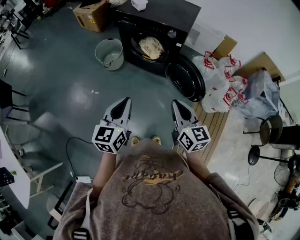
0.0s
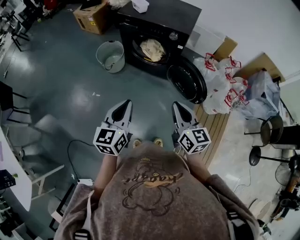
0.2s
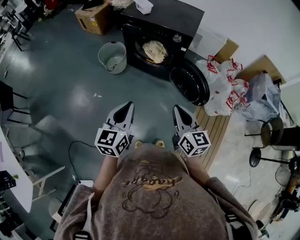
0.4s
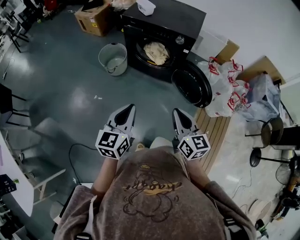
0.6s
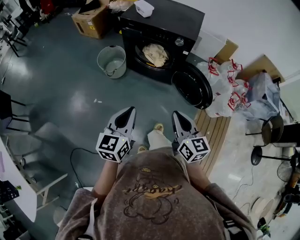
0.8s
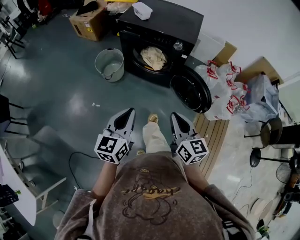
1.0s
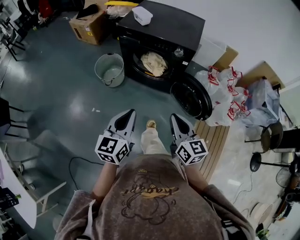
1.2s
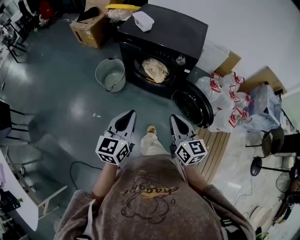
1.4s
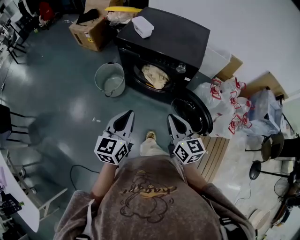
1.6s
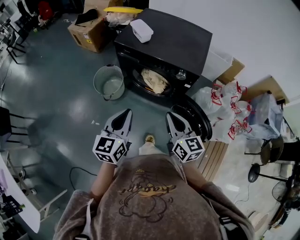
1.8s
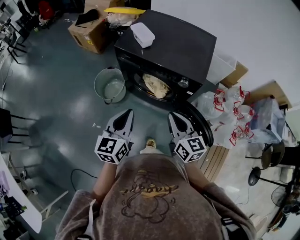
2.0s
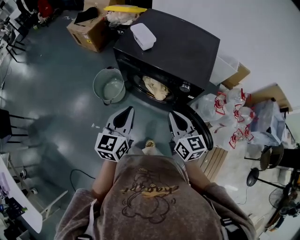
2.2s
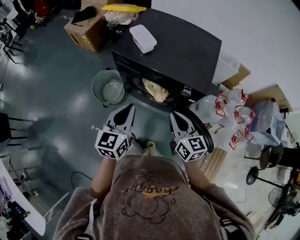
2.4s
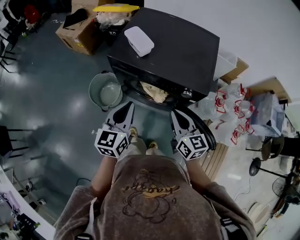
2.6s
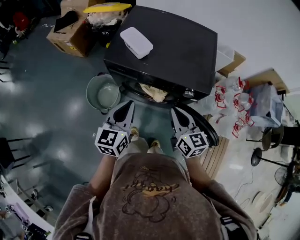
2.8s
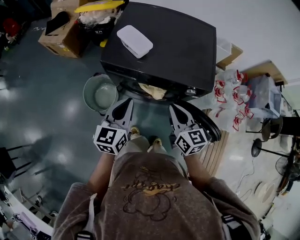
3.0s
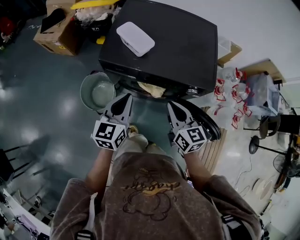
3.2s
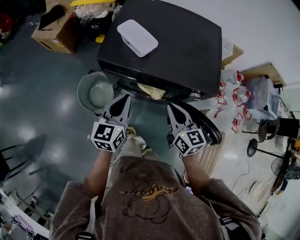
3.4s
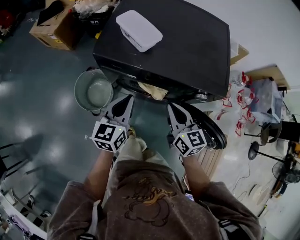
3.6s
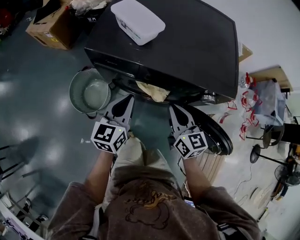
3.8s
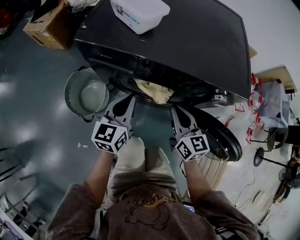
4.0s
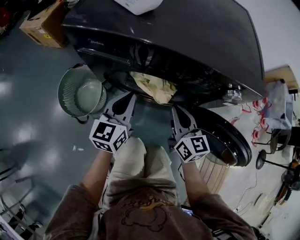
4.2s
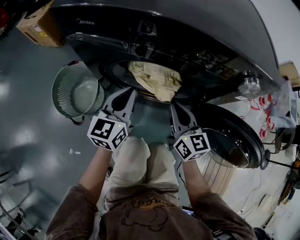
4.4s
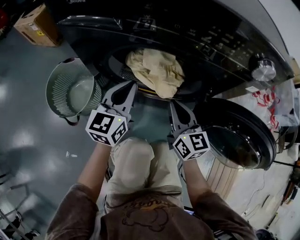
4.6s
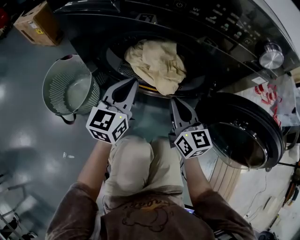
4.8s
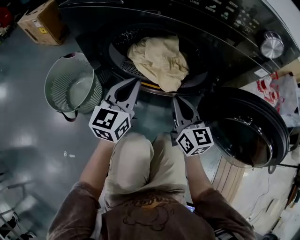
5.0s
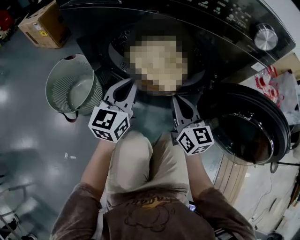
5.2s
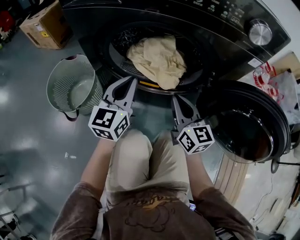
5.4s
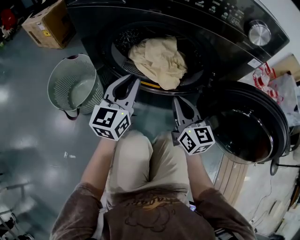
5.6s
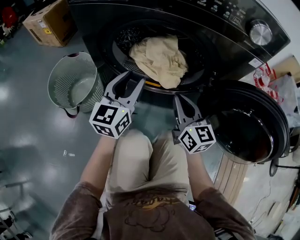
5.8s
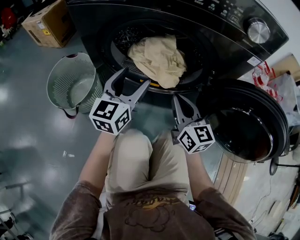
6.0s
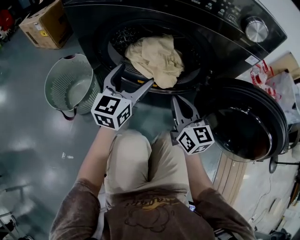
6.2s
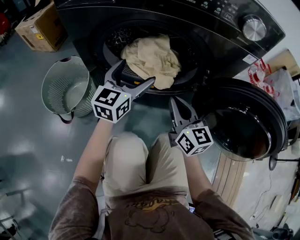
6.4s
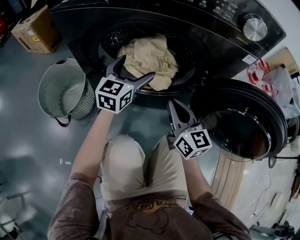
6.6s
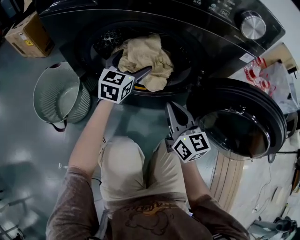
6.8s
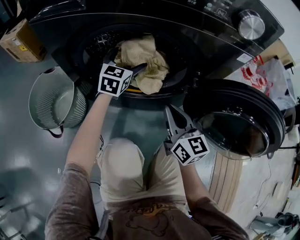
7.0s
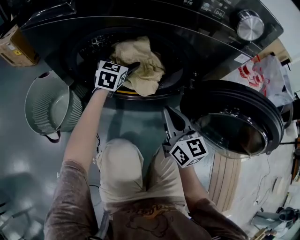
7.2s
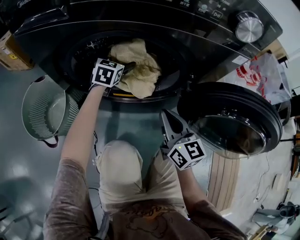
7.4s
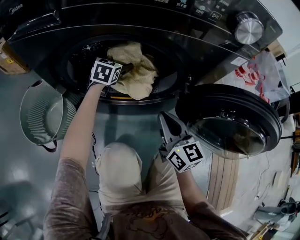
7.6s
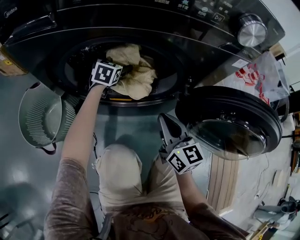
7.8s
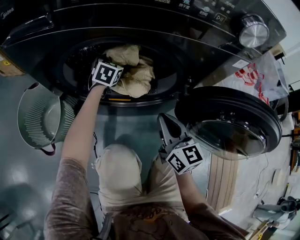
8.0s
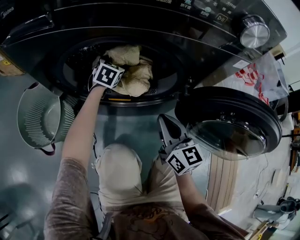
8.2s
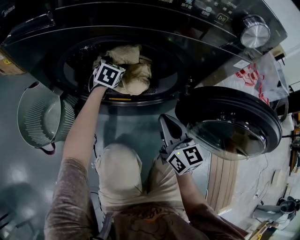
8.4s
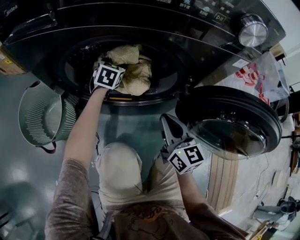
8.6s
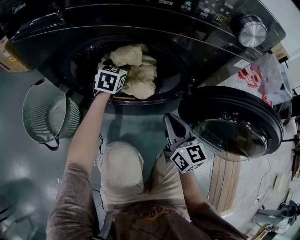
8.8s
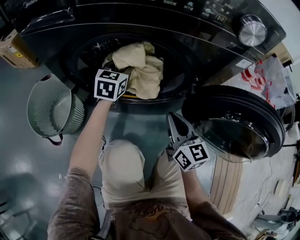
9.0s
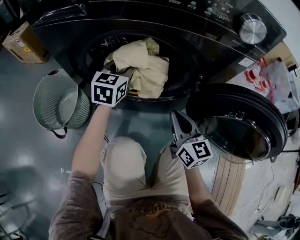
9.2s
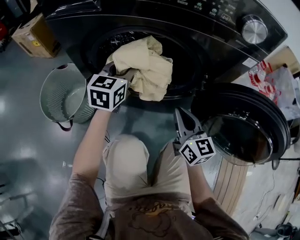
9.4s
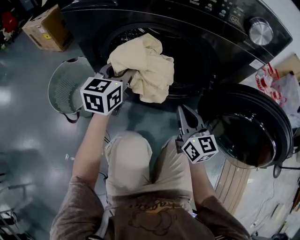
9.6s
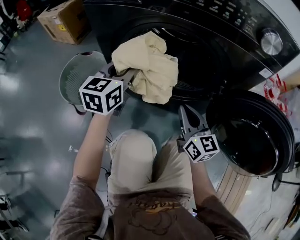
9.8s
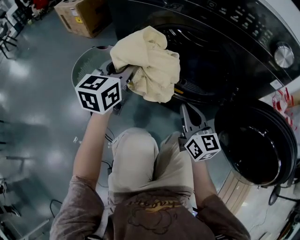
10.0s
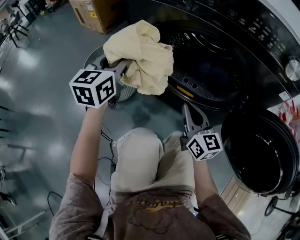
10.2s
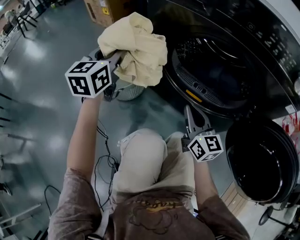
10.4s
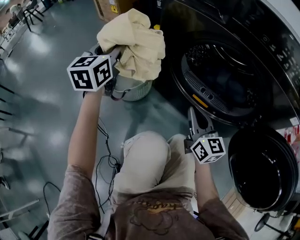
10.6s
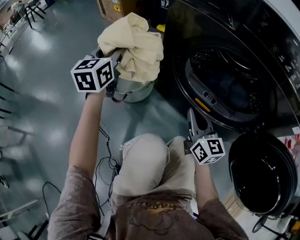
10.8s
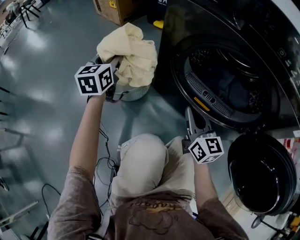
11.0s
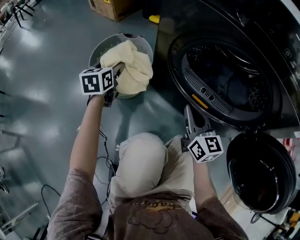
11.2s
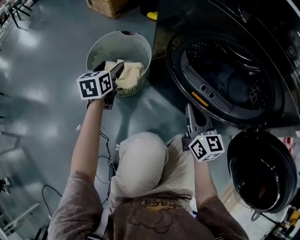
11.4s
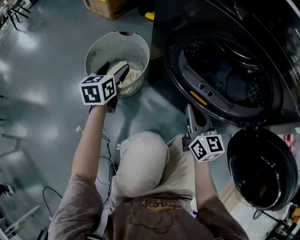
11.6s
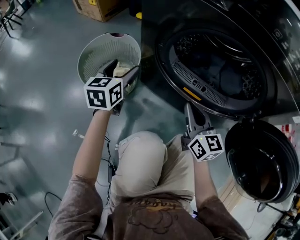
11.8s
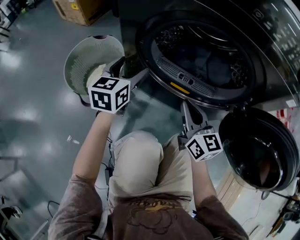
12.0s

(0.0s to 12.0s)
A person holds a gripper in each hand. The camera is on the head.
0.0s - 1.6s: Both grippers move forward, roughly 20 cm.
1.6s - 3.0s: The grippers both shift forward by roughly 30 cm.
3.0s - 4.4s: The grippers both shift downward by roughly 35 cm.
4.4s - 6.0s: The grippers both shift downward by approximately 10 cm. The left gripper opens.
6.0s - 7.6s: The left gripper is displaced forward and downward by roughly 30 cm, changes its angle by some 30 degrees, and opens up.
7.6s - 9.0s: The left gripper shifts approximately 10 cm backward and upward, and closes its fingers.
9.0s - 10.4s: The left gripper changes place by approximately 40 cm, and rotates some 30 degrees, while the right gripper changes place by roughly 15 cm, and changes its angle by about 30 degrees.
10.4s - 12.0s: The left gripper travels downward and to the right by about 20 cm, and opens up.

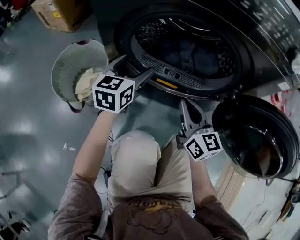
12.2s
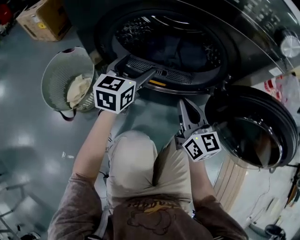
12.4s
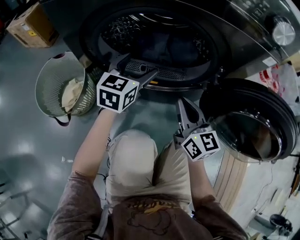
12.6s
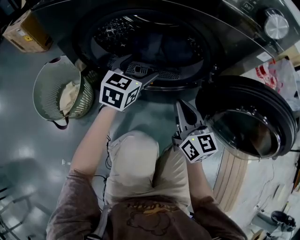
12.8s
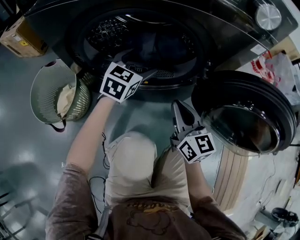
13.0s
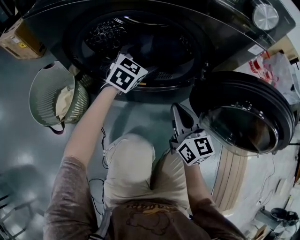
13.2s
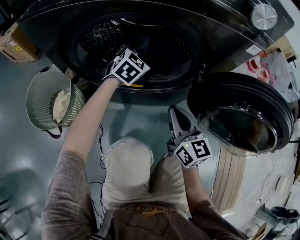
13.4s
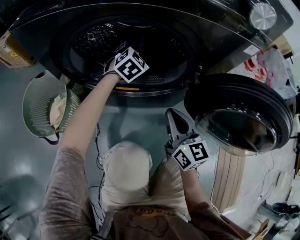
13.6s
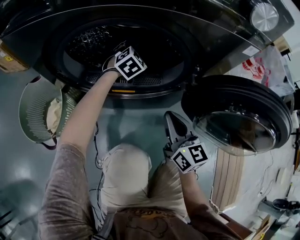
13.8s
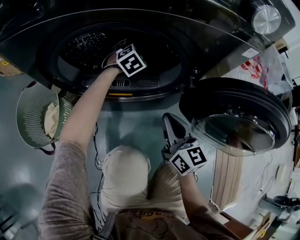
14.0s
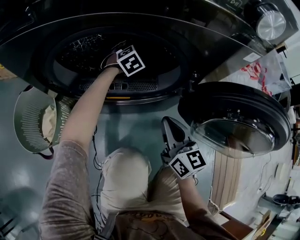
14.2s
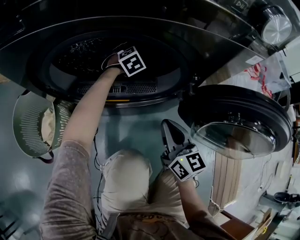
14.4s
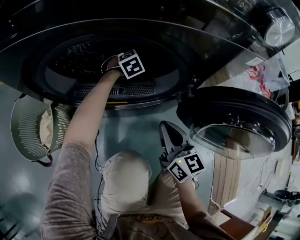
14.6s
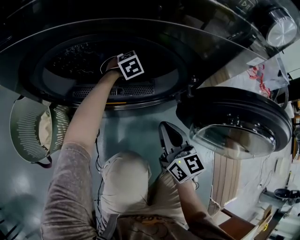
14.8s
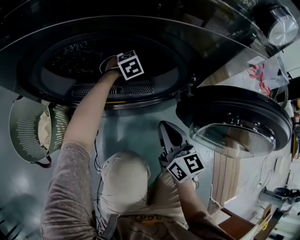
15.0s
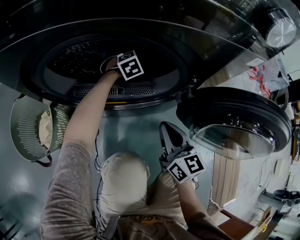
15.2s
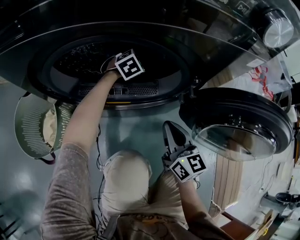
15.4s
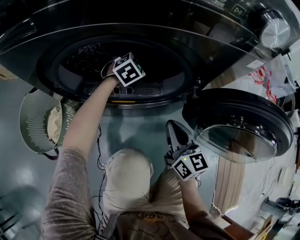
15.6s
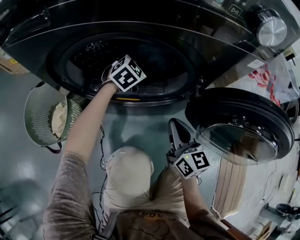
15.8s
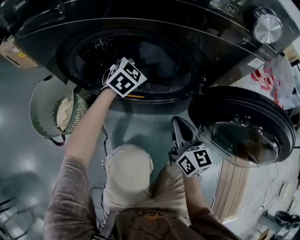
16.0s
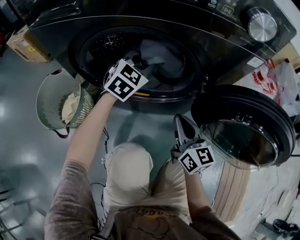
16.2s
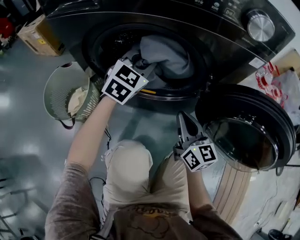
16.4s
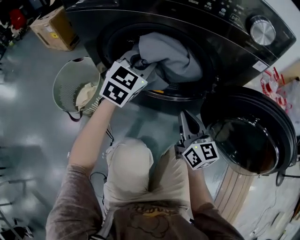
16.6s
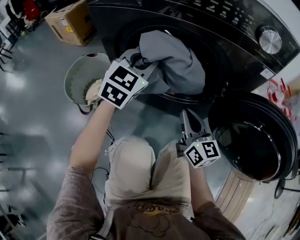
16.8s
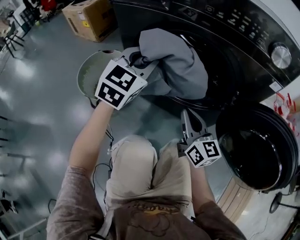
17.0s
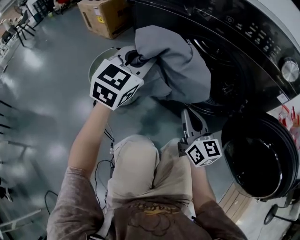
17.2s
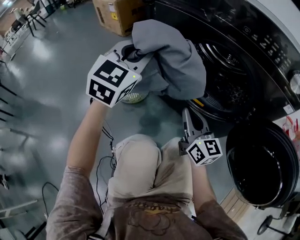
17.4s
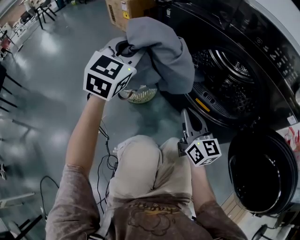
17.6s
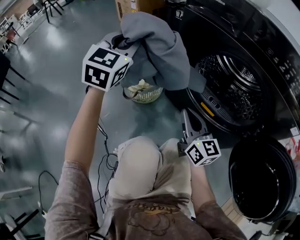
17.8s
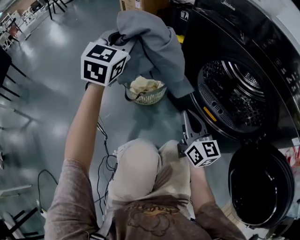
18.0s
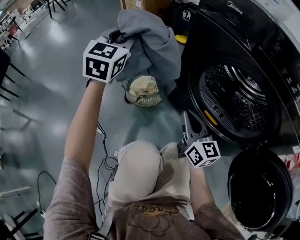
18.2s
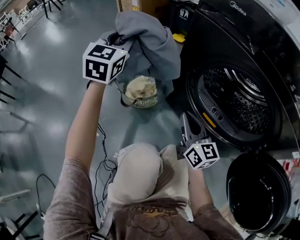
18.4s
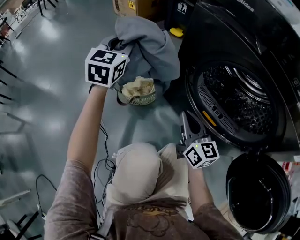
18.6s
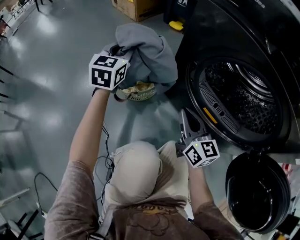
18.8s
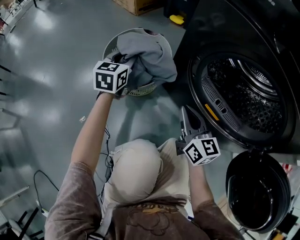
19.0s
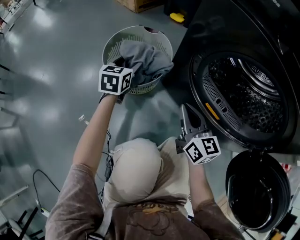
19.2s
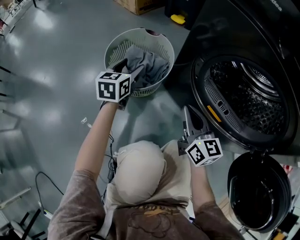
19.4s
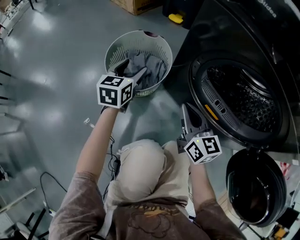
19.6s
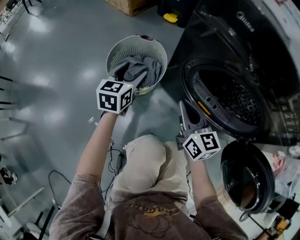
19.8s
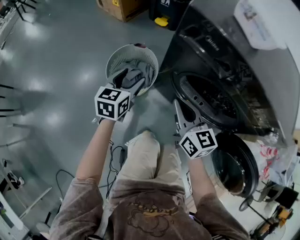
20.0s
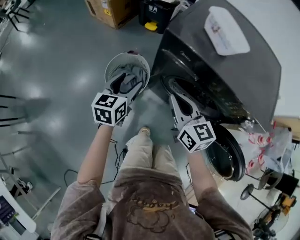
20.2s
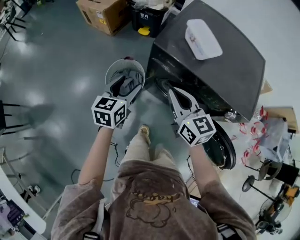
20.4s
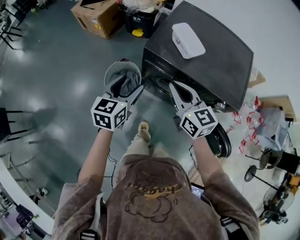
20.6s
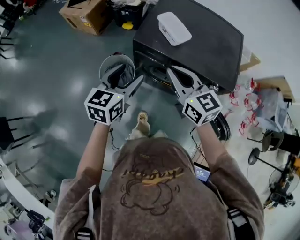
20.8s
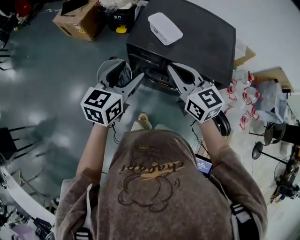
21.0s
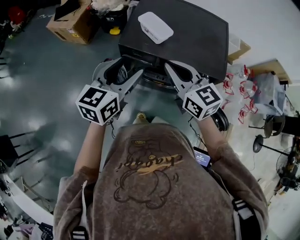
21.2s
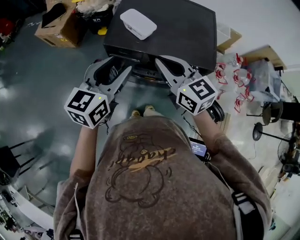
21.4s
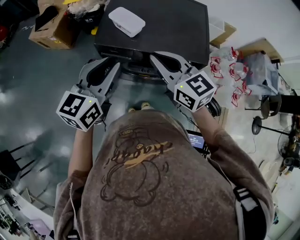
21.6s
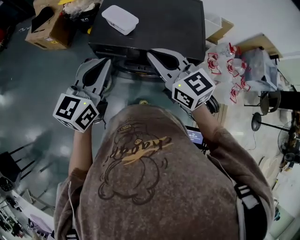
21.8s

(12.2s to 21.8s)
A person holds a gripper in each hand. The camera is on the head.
12.2s - 13.8s: The right gripper goes about 10 cm to the right, while the left gripper travels to the right, forward and downward by approximately 30 cm, and rolls clockwise, seen from behind, by roughly 50 degrees.
13.8s - 15.4s: The left gripper closes up.
15.4s - 17.0s: The right gripper changes place by about 15 cm, and swivels some 30 degrees; the left gripper changes place by approximately 40 cm, and tips its fingers upward by about 30 degrees.
17.0s - 18.6s: The left gripper ends up roughly 30 cm from where it was, and swivels some 40 degrees, while the right gripper shifts by some 20 cm.
18.6s - 20.2s: The left gripper is displaced upward and backward by some 20 cm, changes its angle by approximately 30 degrees, and opens its fingers. Meanwhile the right gripper moves upward, about 35 cm.
20.2s - 21.8s: The two grippers go about 35 cm upward and to the right. The left gripper swivels approximately 30 degrees, and closes up.

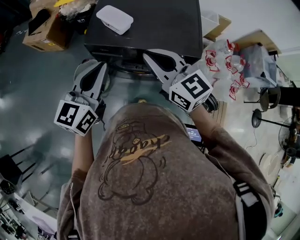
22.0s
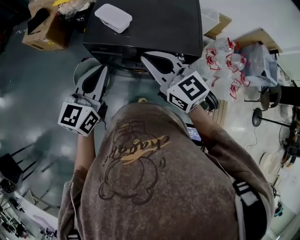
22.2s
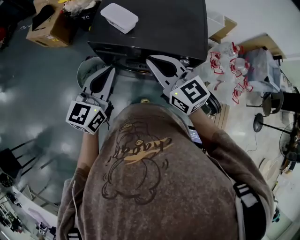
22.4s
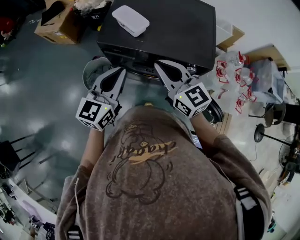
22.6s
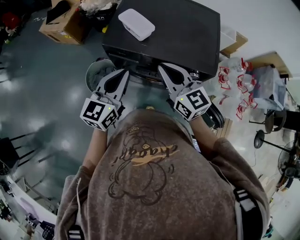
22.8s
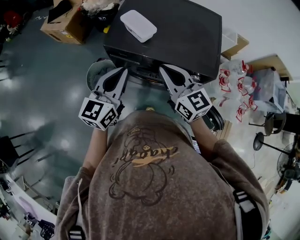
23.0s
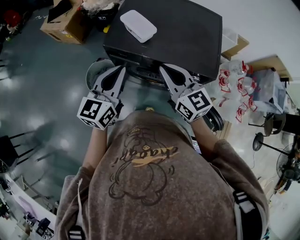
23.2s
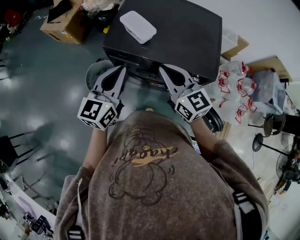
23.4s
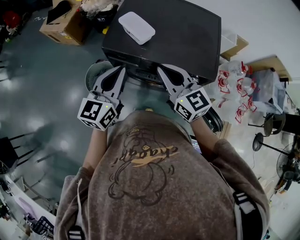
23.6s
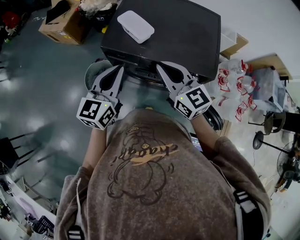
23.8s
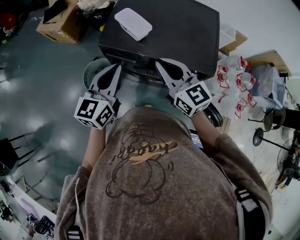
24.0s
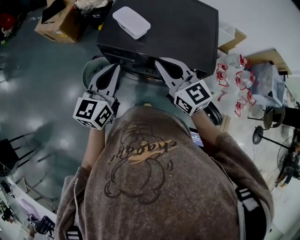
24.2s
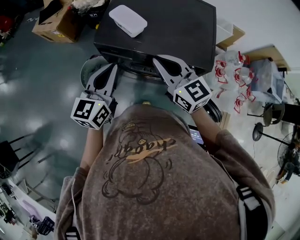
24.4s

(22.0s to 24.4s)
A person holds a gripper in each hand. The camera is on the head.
22.0s - 23.2s: The left gripper shifts by roughly 5 cm. The right gripper travels downward by about 5 cm.
23.2s - 24.4s: Neither gripper changes place.
